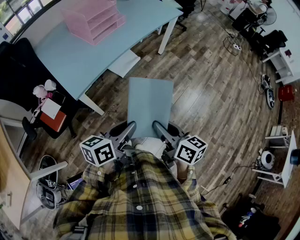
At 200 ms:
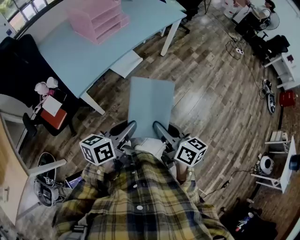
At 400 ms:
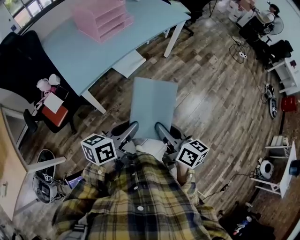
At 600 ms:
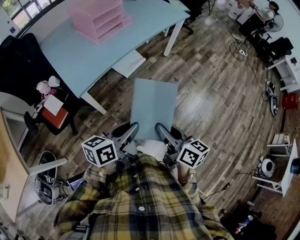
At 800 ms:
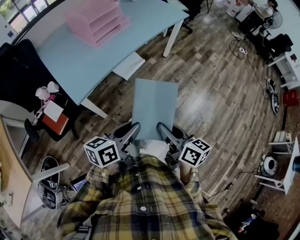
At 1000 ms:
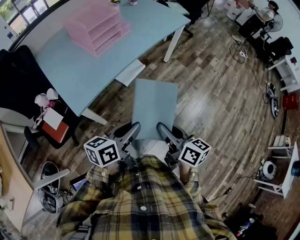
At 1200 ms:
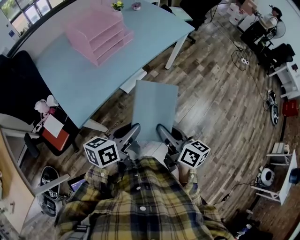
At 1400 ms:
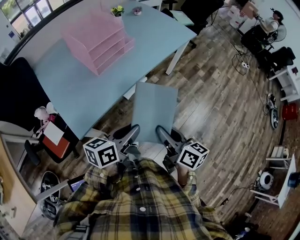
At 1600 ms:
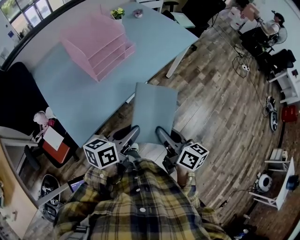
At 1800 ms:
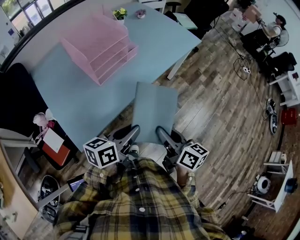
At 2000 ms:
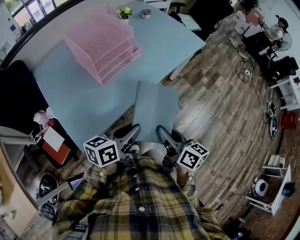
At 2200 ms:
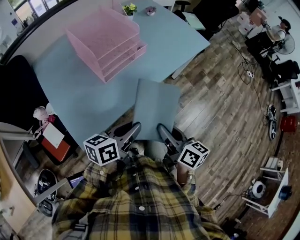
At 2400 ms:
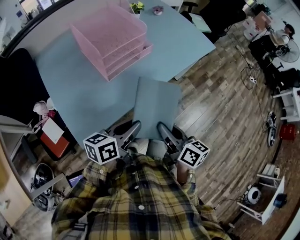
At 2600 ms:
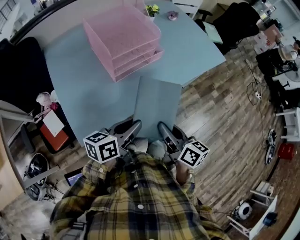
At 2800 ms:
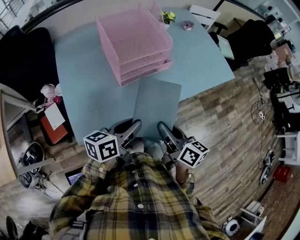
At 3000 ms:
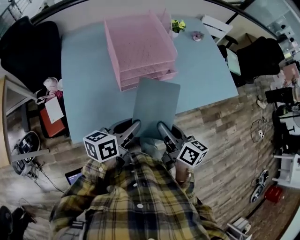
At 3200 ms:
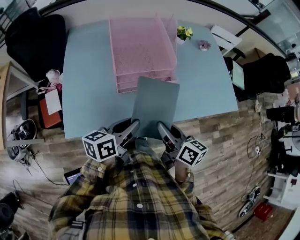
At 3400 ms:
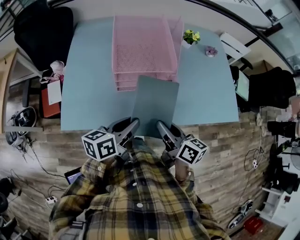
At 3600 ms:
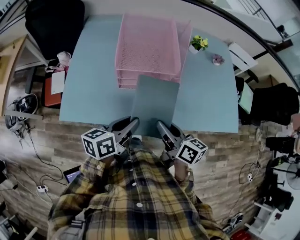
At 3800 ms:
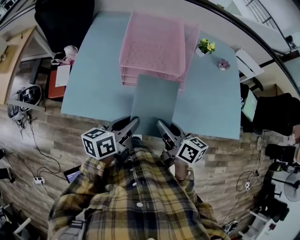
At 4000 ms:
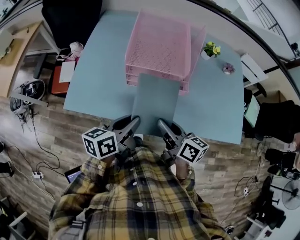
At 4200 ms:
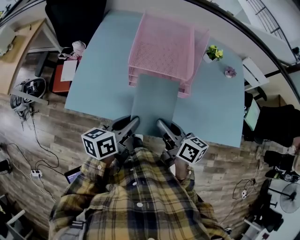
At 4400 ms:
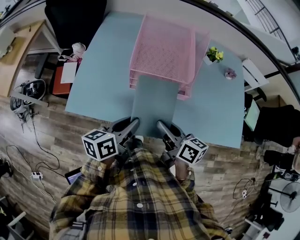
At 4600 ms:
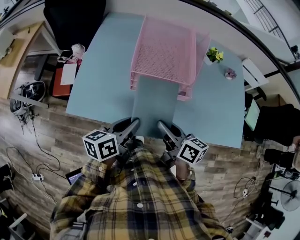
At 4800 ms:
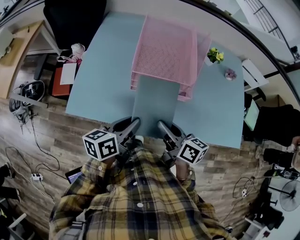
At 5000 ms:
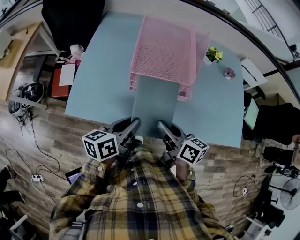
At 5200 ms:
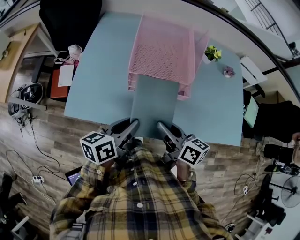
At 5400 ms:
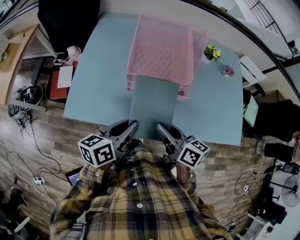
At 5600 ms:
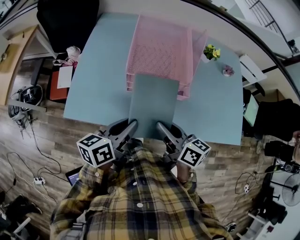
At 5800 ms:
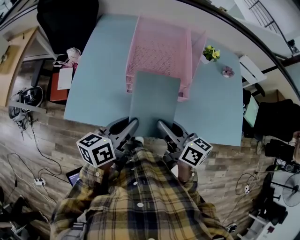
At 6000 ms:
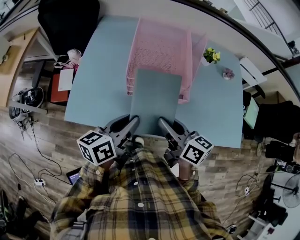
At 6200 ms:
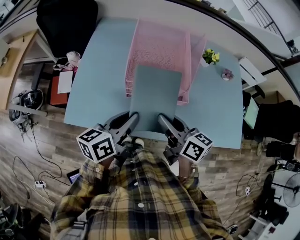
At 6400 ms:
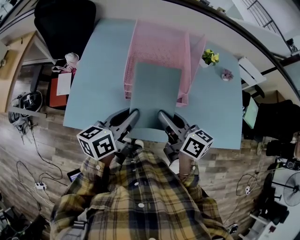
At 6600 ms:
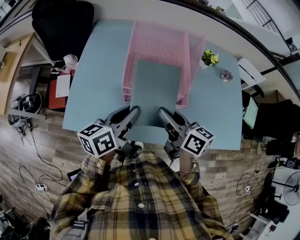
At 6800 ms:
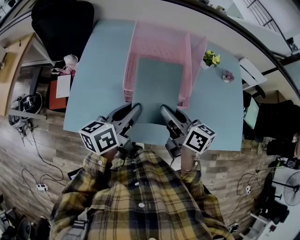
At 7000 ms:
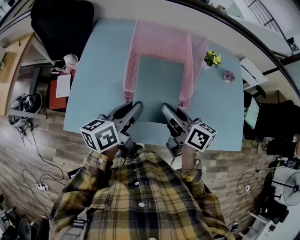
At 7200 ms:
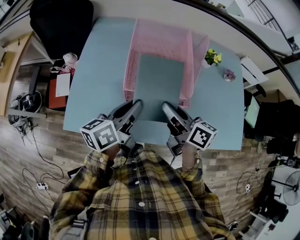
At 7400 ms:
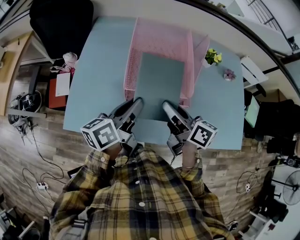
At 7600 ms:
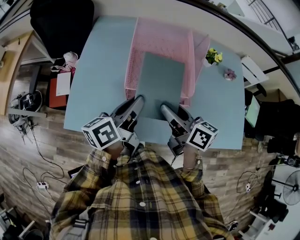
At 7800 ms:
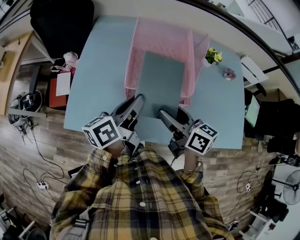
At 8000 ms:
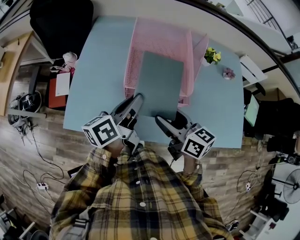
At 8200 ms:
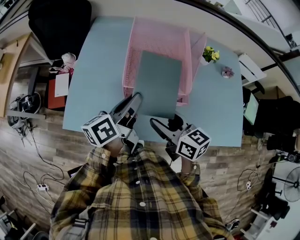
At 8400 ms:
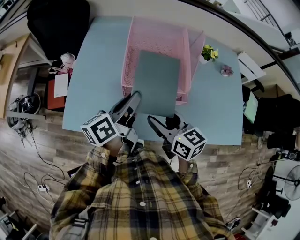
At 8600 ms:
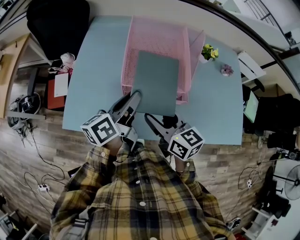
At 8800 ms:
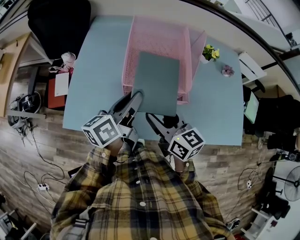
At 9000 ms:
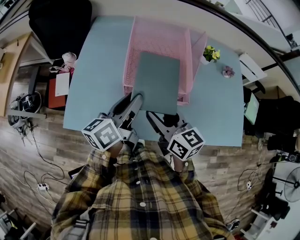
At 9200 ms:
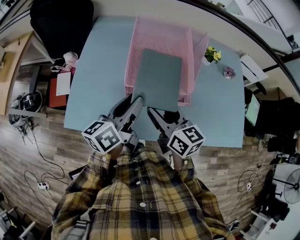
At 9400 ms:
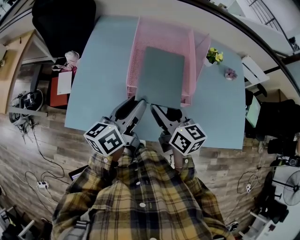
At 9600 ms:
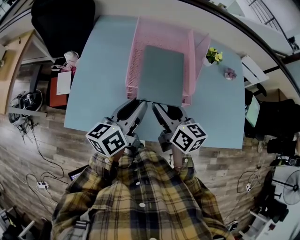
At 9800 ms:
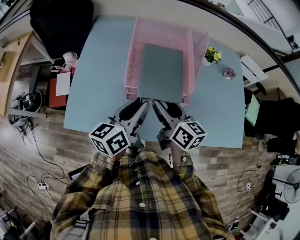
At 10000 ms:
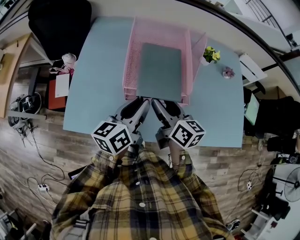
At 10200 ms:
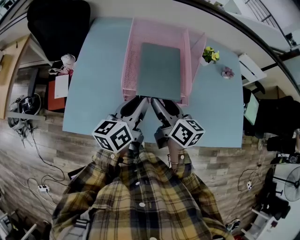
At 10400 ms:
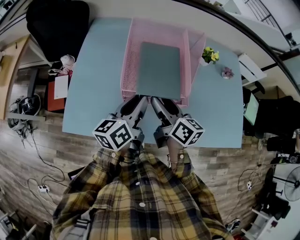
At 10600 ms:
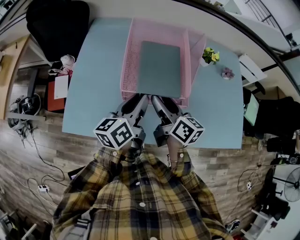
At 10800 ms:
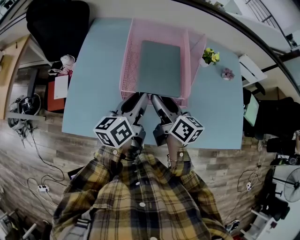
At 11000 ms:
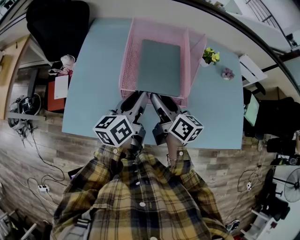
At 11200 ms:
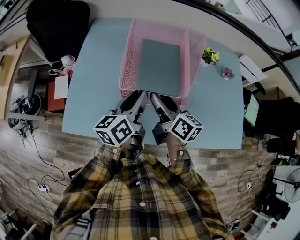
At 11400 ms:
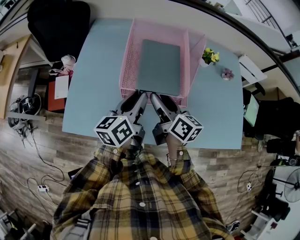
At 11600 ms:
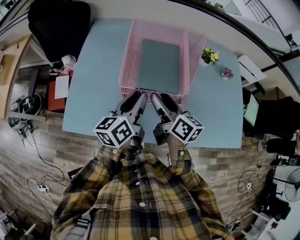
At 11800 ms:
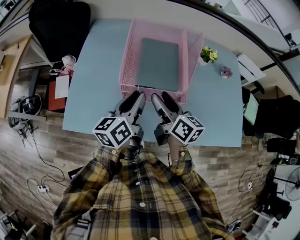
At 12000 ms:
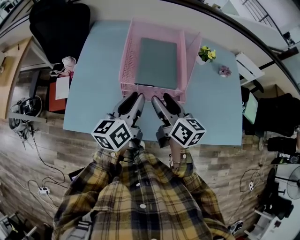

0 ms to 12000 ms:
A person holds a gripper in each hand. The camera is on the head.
0 ms to 1600 ms: The two grippers go approximately 25 cm forward.
1600 ms to 3000 ms: The left gripper moves approximately 20 cm, and rotates some 30 degrees. Meanwhile the right gripper changes place by about 25 cm, and rotates some 30 degrees.
3000 ms to 4400 ms: The right gripper changes place by some 10 cm, and changes its angle by about 30 degrees. The left gripper swivels roughly 30 degrees.
4400 ms to 6000 ms: The left gripper ends up some 5 cm from where it was, while the right gripper ends up roughly 5 cm from where it was.
6000 ms to 7600 ms: The two grippers go some 10 cm forward. The right gripper opens.
7600 ms to 9000 ms: The right gripper rotates approximately 20 degrees.
9000 ms to 10400 ms: The right gripper moves forward, about 5 cm, and turns by about 20 degrees.
10400 ms to 12000 ms: There are only small adjustments of the grippers.

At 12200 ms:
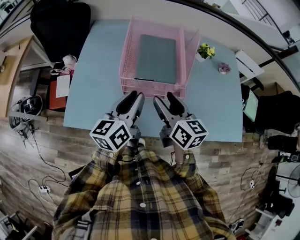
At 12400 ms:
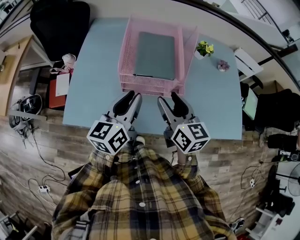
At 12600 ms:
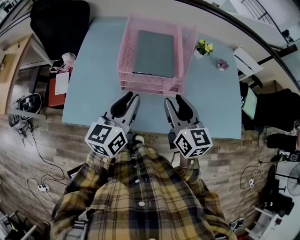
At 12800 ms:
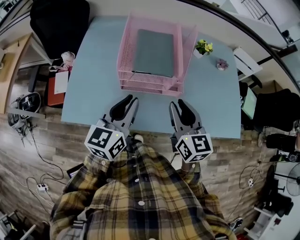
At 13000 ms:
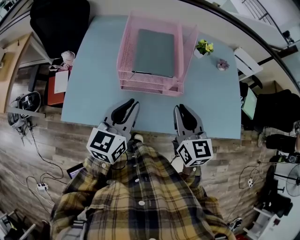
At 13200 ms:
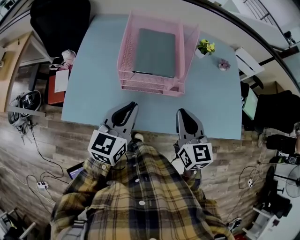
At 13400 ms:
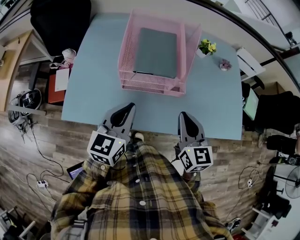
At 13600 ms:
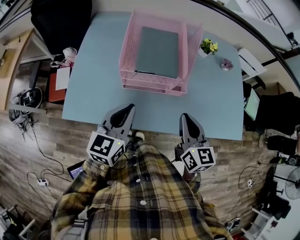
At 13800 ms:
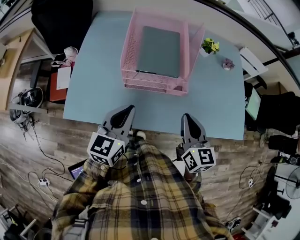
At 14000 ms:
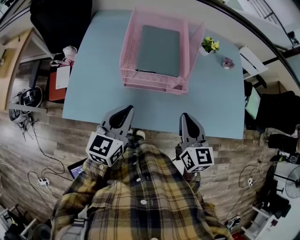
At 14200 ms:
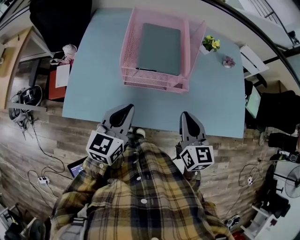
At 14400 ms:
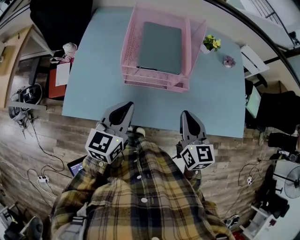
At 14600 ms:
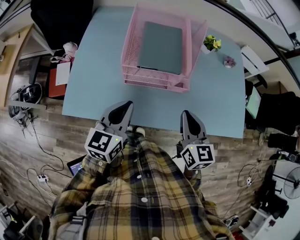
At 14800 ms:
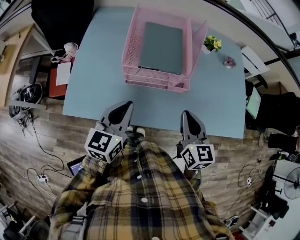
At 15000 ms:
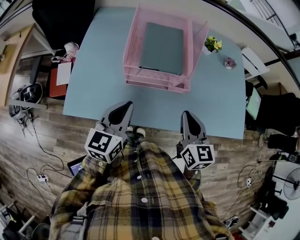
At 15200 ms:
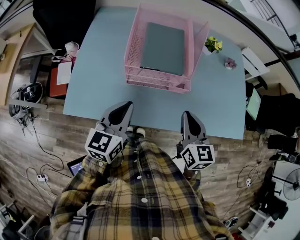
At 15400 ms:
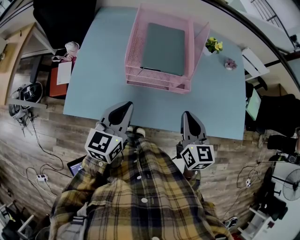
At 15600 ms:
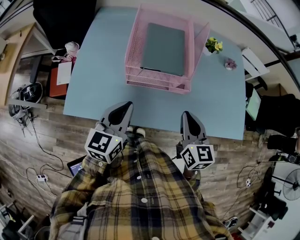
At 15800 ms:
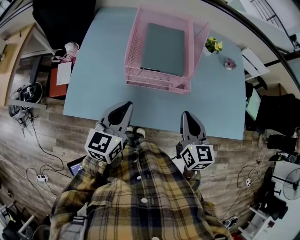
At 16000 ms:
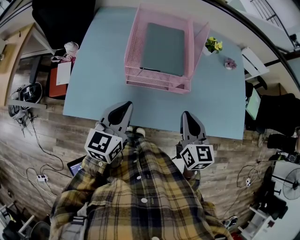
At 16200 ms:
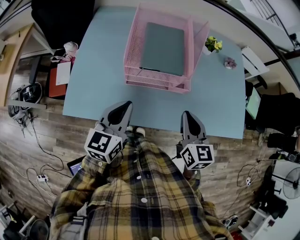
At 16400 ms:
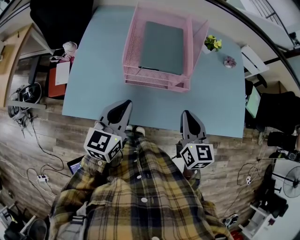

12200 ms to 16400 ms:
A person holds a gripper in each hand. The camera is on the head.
12200 ms to 13600 ms: The left gripper is displaced backward by some 5 cm, swivels approximately 20 degrees, and closes up. The right gripper moves to the right and backward, about 10 cm, and closes up.
13600 ms to 15000 ms: There are only small adjustments of the grippers.
15000 ms to 16400 ms: Both grippers stay about where they are.

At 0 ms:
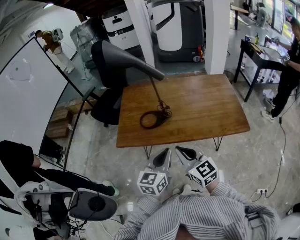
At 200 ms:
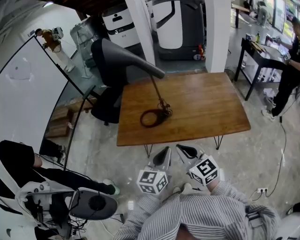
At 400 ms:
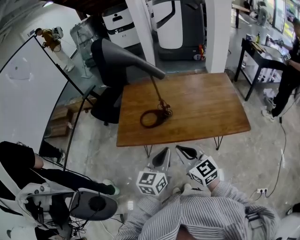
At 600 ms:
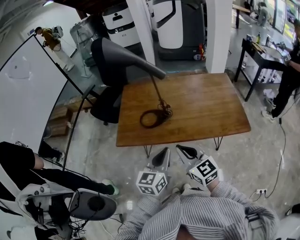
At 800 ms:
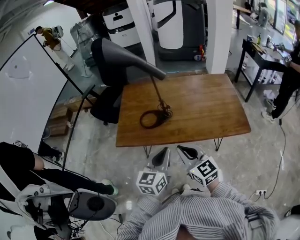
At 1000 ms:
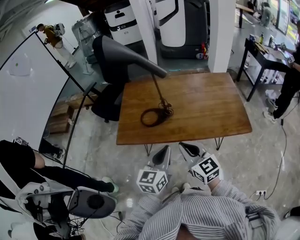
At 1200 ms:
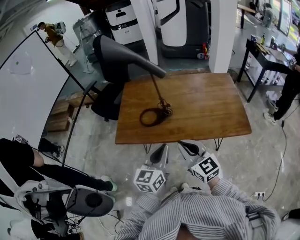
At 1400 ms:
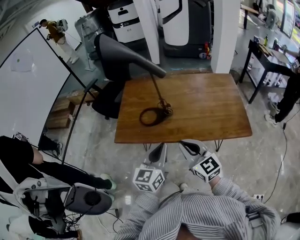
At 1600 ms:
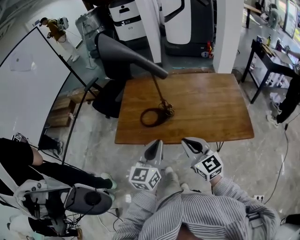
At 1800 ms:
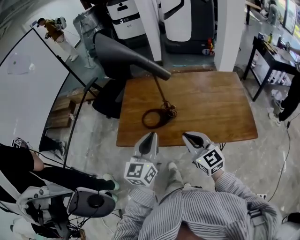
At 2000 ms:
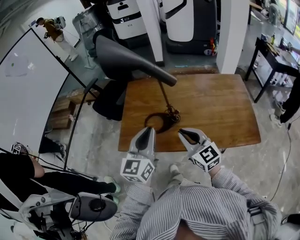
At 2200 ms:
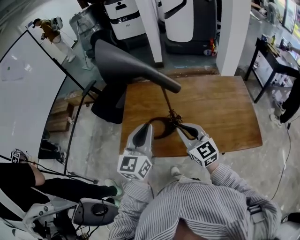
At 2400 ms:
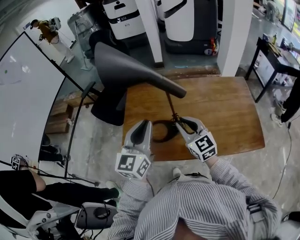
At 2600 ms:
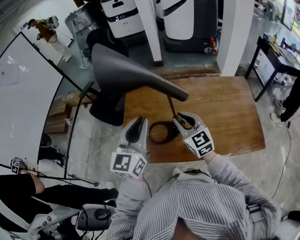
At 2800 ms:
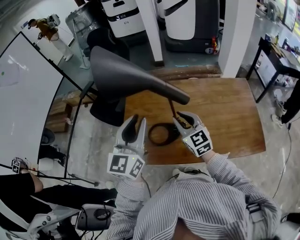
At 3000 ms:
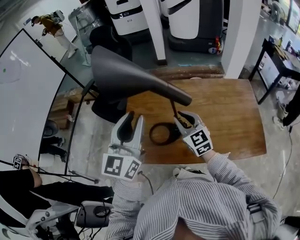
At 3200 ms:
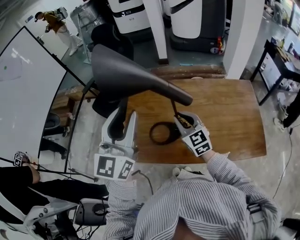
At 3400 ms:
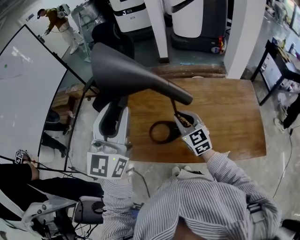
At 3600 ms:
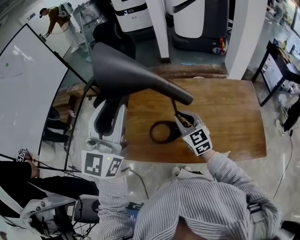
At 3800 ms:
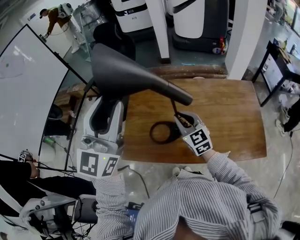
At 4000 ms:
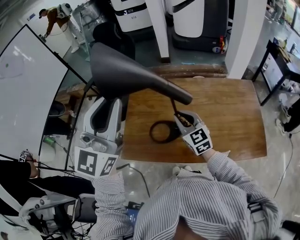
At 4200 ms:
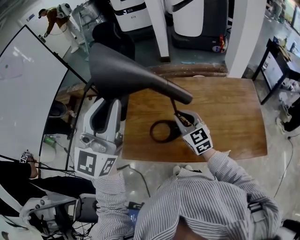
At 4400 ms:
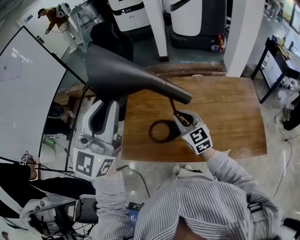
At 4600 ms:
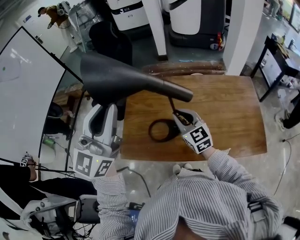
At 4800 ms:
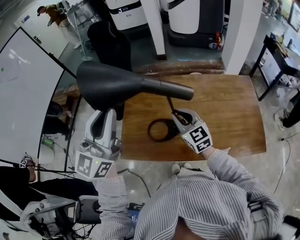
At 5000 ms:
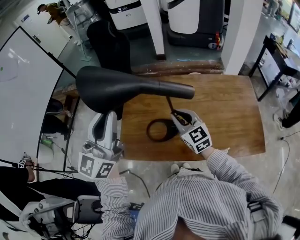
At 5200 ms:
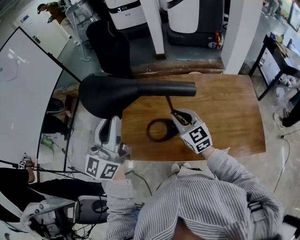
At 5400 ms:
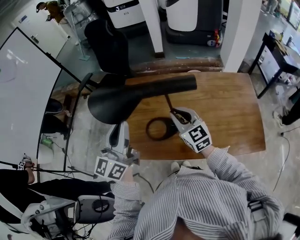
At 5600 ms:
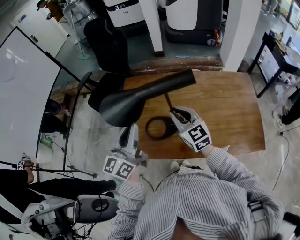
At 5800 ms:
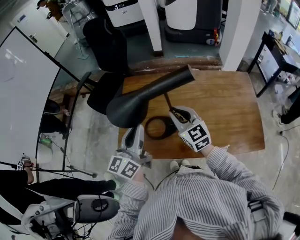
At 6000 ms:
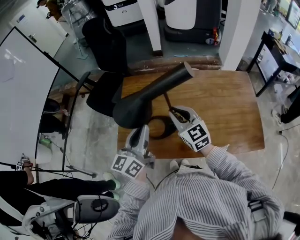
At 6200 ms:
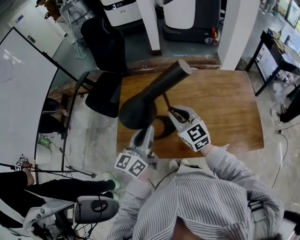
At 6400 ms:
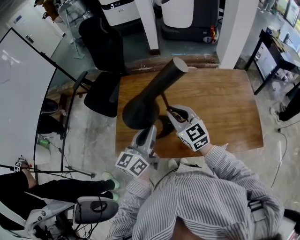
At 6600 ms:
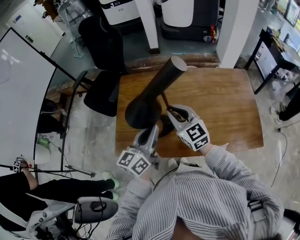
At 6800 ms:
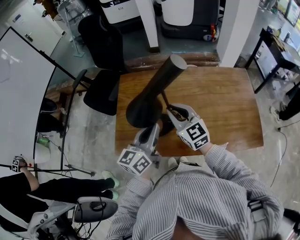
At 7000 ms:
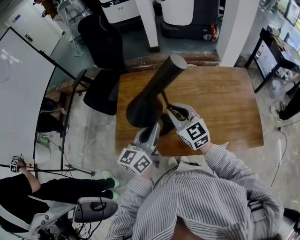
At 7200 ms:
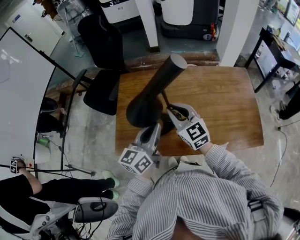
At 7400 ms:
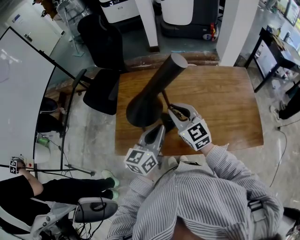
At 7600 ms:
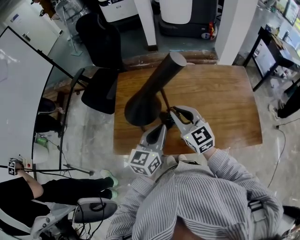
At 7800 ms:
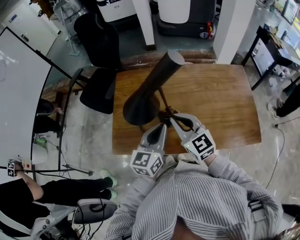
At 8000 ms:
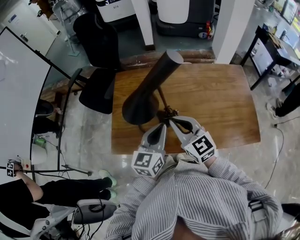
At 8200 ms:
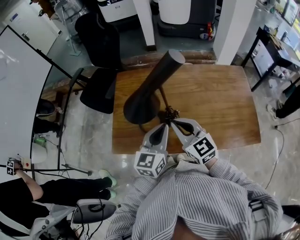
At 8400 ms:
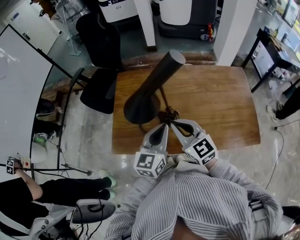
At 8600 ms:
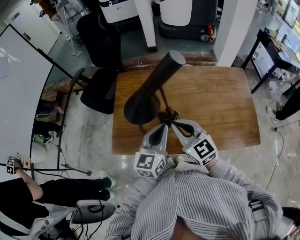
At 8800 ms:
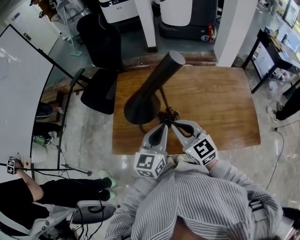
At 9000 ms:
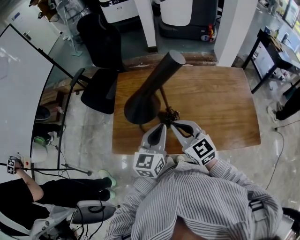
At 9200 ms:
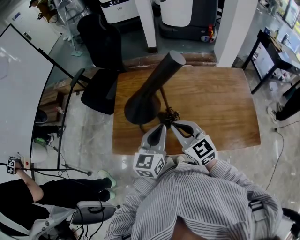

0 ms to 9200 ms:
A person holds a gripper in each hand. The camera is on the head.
0 ms to 1600 ms: Both grippers travel together forward, about 5 cm.
1600 ms to 3000 ms: The right gripper heads forward, covering about 25 cm, while the left gripper shifts some 25 cm forward and upward, and opens its fingers.
3000 ms to 4600 ms: The left gripper goes some 10 cm upward.
4600 ms to 6200 ms: The left gripper moves downward, some 25 cm, and turns by some 40 degrees.
6200 ms to 7600 ms: The left gripper is displaced to the right by about 5 cm.
7600 ms to 9200 ms: The right gripper goes some 5 cm backward.
